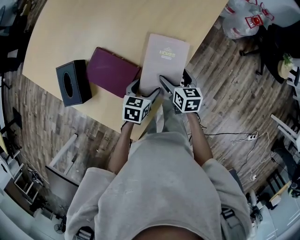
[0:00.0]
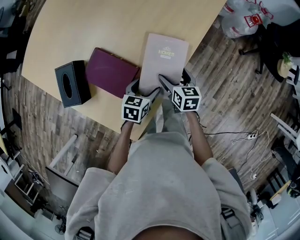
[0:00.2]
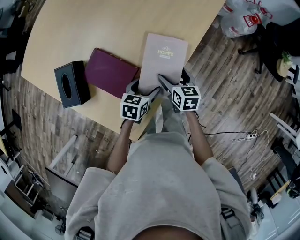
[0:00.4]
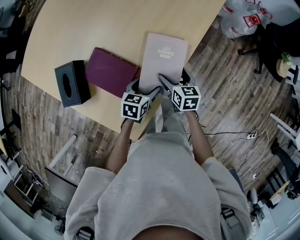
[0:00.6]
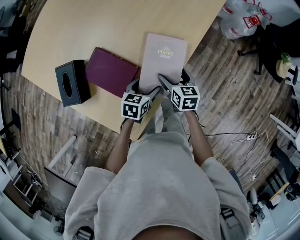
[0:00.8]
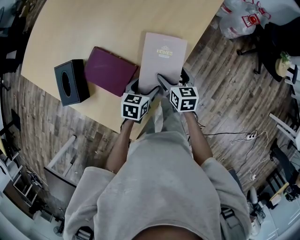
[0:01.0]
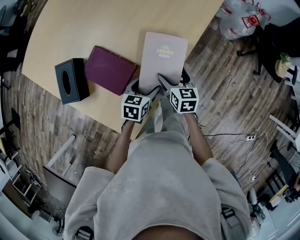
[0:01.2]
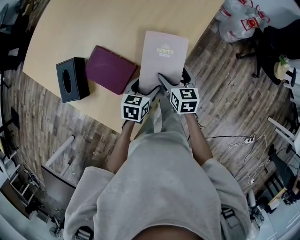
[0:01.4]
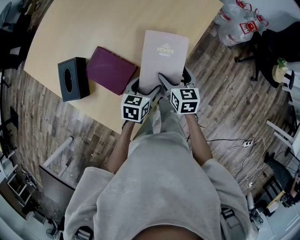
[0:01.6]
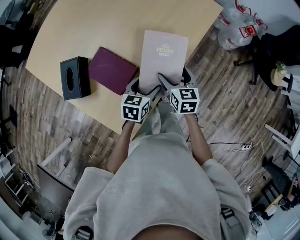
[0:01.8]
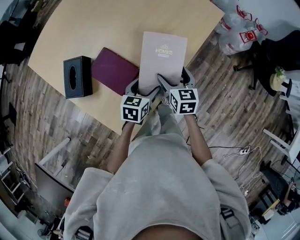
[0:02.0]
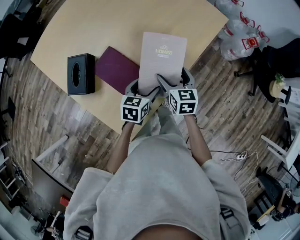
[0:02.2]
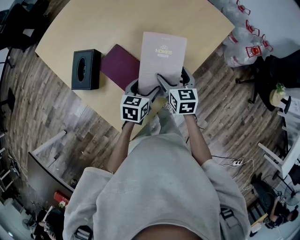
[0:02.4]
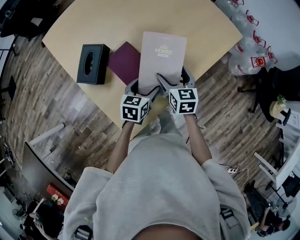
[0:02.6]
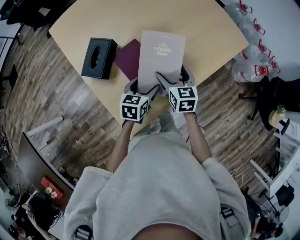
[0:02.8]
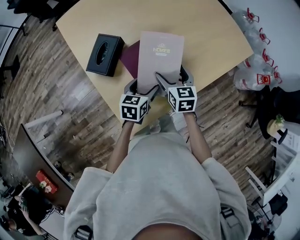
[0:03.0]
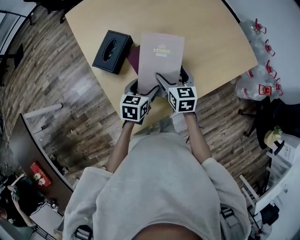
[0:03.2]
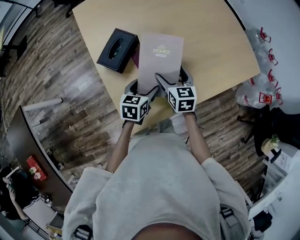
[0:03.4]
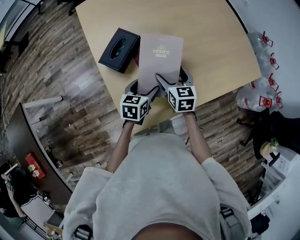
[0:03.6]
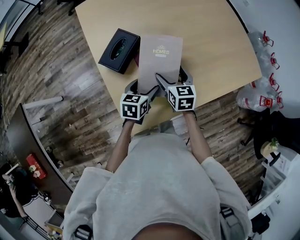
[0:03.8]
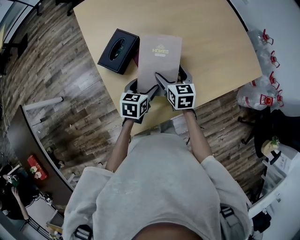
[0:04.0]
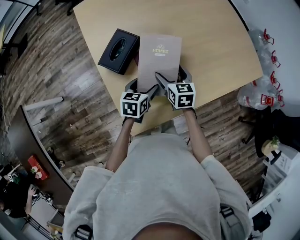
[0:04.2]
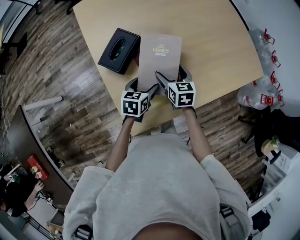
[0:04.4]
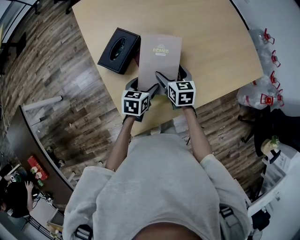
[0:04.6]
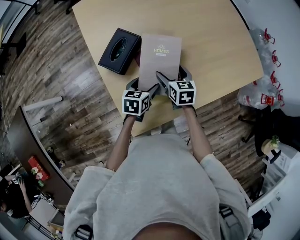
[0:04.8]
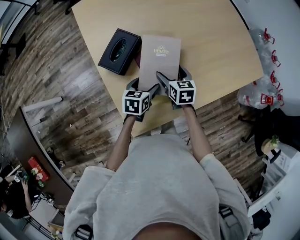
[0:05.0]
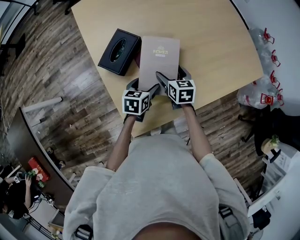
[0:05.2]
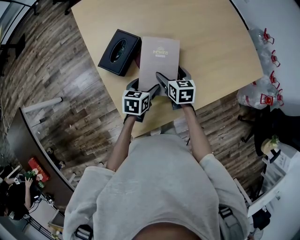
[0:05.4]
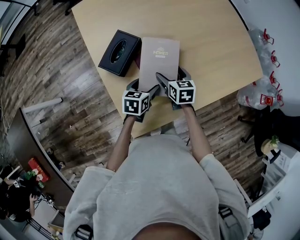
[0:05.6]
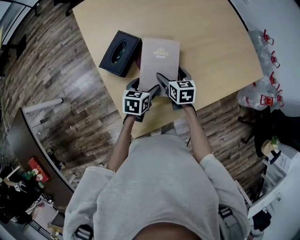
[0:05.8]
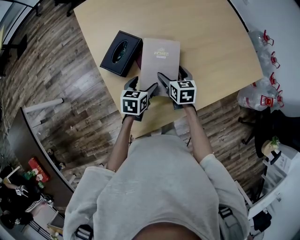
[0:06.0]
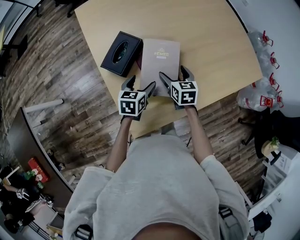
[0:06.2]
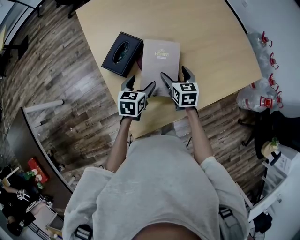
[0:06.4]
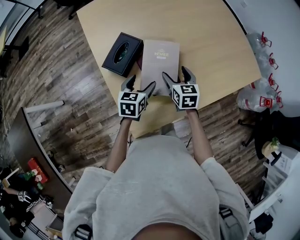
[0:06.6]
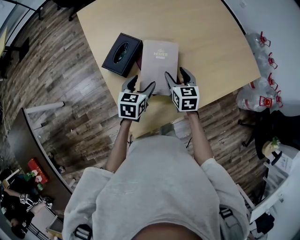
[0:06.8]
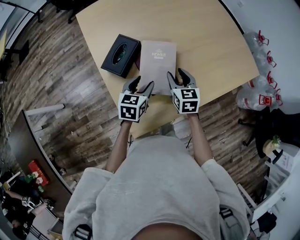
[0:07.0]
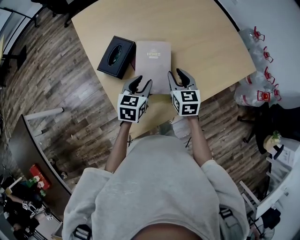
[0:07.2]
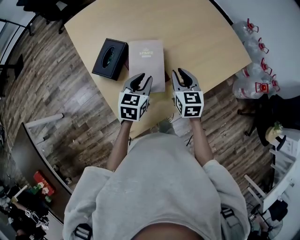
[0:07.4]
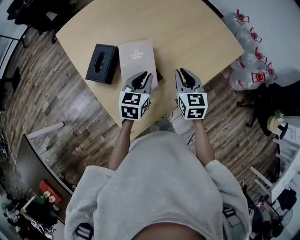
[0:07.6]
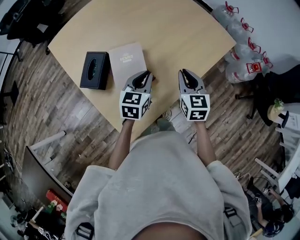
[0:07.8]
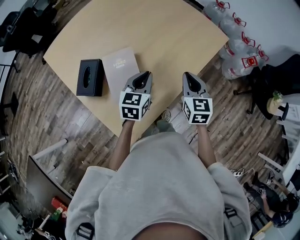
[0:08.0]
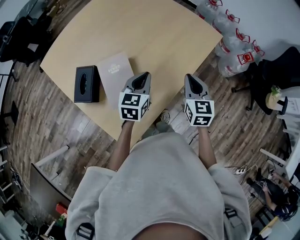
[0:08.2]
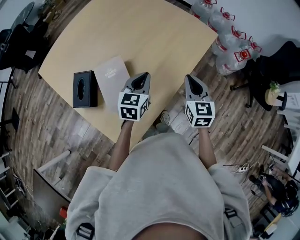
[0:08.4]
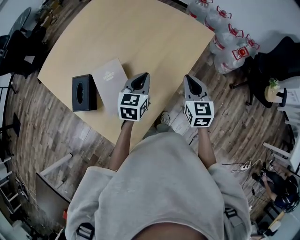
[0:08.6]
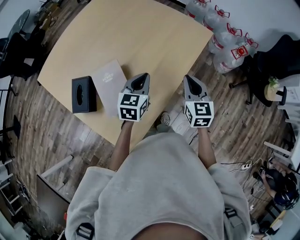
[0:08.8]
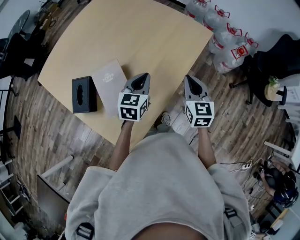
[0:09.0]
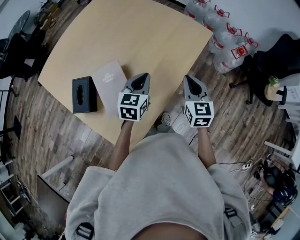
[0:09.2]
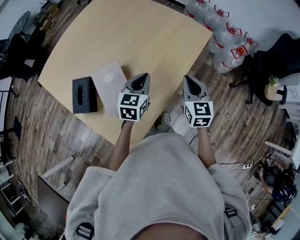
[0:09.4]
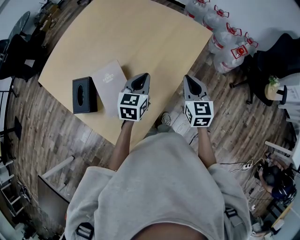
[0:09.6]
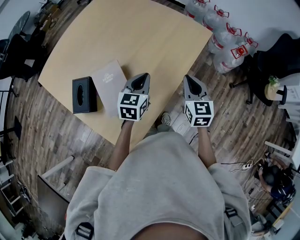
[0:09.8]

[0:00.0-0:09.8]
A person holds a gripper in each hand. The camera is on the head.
0:00.0 to 0:01.4: The grippers move only a little.
0:01.4 to 0:02.8: Both grippers move to the left and upward, roughly 15 cm. The right gripper turns by about 20 degrees; the left gripper turns by roughly 20 degrees.
0:02.8 to 0:04.2: The two grippers go about 10 cm to the left.
0:04.2 to 0:05.6: The grippers make only small movements.
0:05.6 to 0:07.0: The two grippers go roughly 10 cm upward. The right gripper closes.
0:07.0 to 0:08.4: The right gripper ends up approximately 25 cm from where it was, changes its angle by approximately 30 degrees, and closes its fingers. The left gripper moves some 20 cm, rotates some 30 degrees, and closes.
0:08.4 to 0:09.8: There are only small adjustments of the grippers.

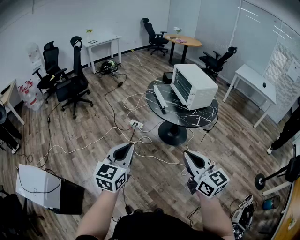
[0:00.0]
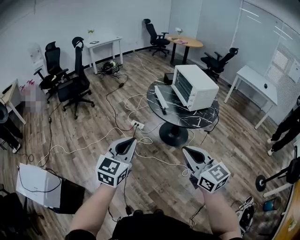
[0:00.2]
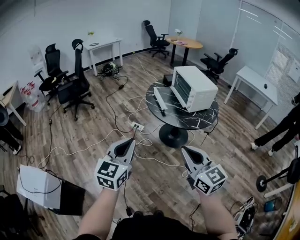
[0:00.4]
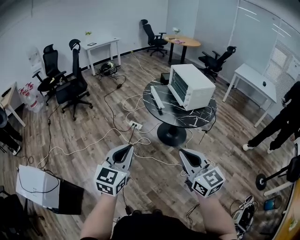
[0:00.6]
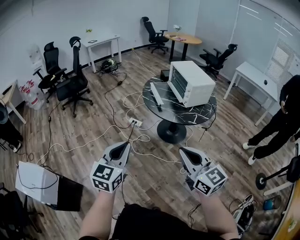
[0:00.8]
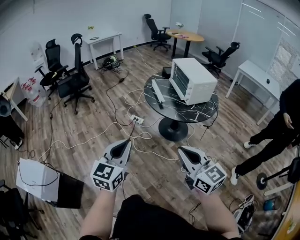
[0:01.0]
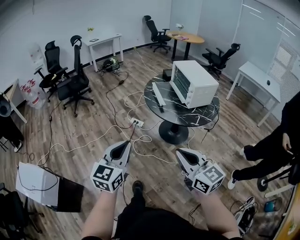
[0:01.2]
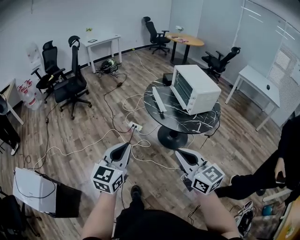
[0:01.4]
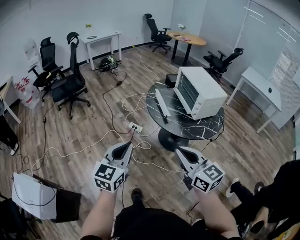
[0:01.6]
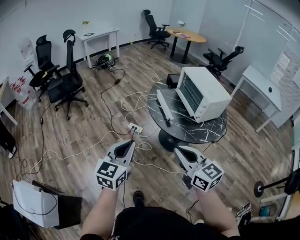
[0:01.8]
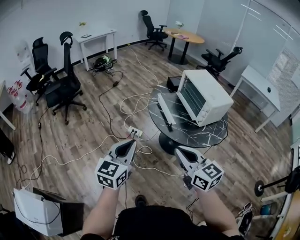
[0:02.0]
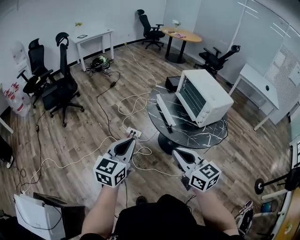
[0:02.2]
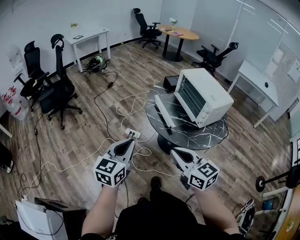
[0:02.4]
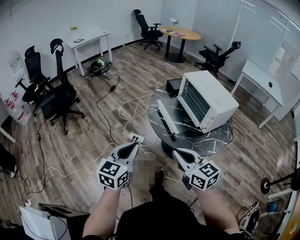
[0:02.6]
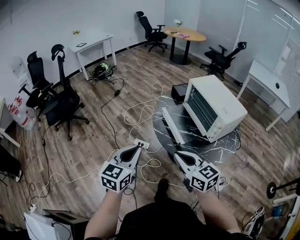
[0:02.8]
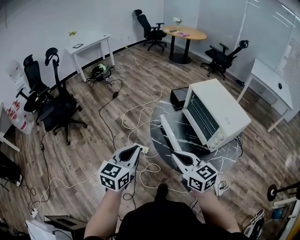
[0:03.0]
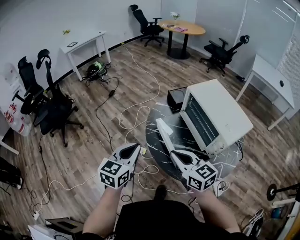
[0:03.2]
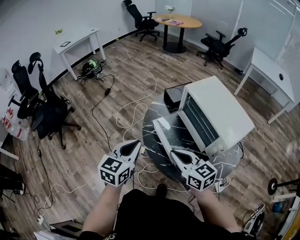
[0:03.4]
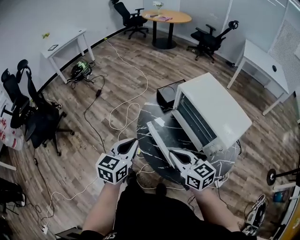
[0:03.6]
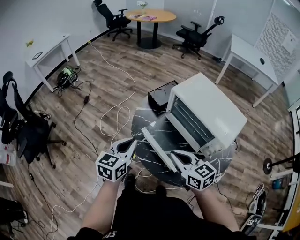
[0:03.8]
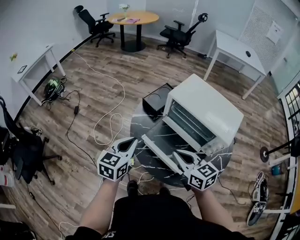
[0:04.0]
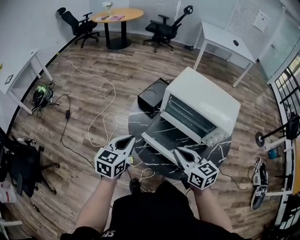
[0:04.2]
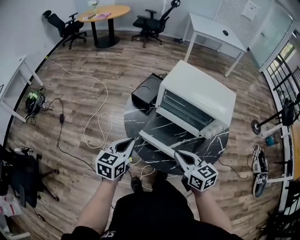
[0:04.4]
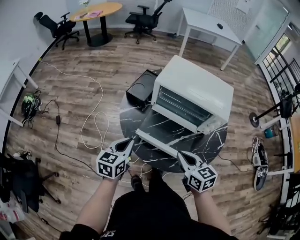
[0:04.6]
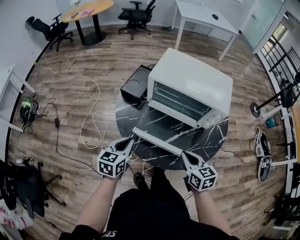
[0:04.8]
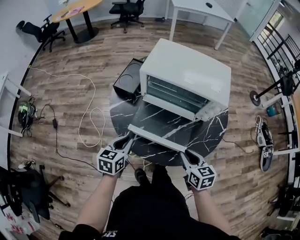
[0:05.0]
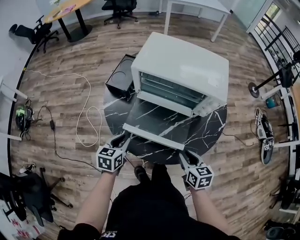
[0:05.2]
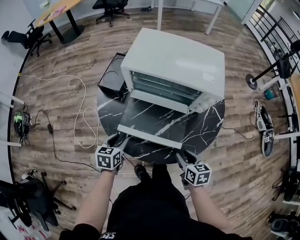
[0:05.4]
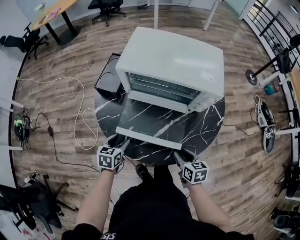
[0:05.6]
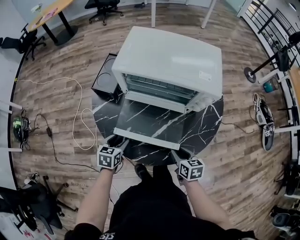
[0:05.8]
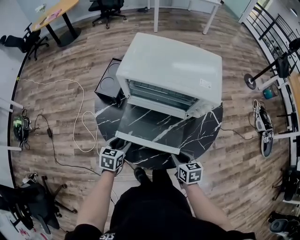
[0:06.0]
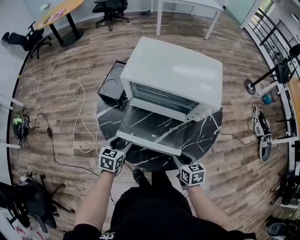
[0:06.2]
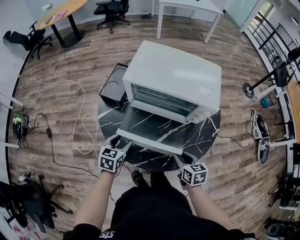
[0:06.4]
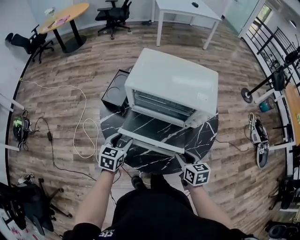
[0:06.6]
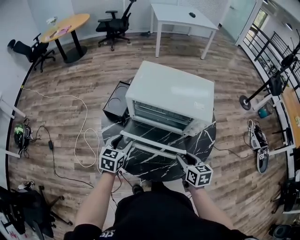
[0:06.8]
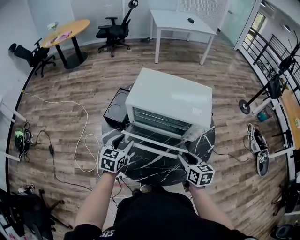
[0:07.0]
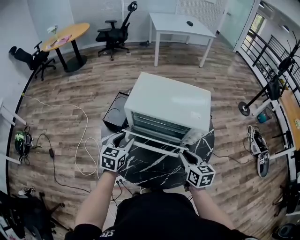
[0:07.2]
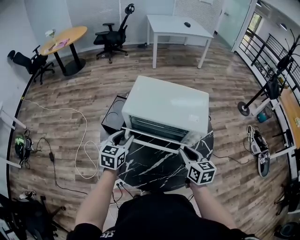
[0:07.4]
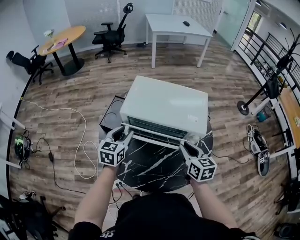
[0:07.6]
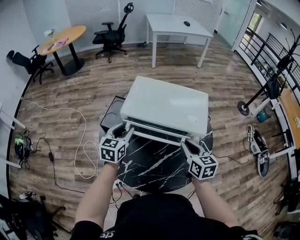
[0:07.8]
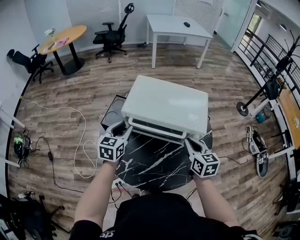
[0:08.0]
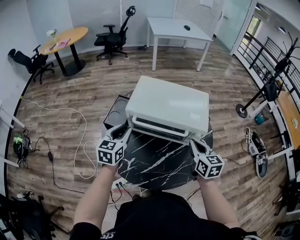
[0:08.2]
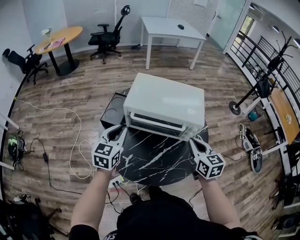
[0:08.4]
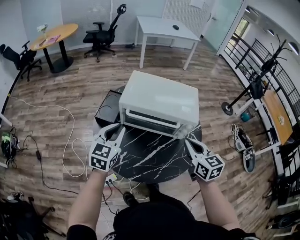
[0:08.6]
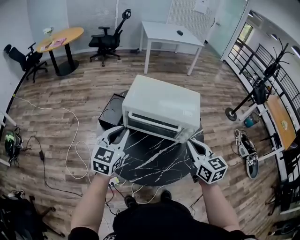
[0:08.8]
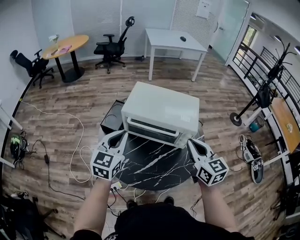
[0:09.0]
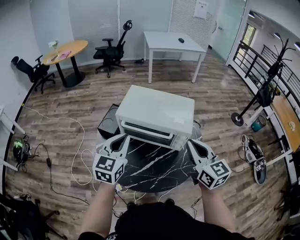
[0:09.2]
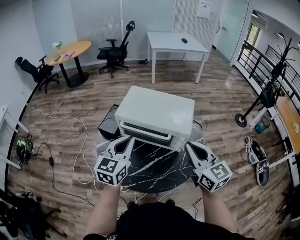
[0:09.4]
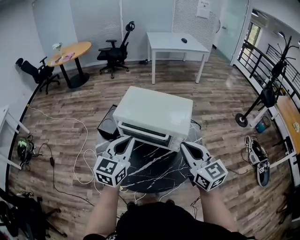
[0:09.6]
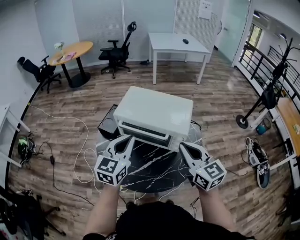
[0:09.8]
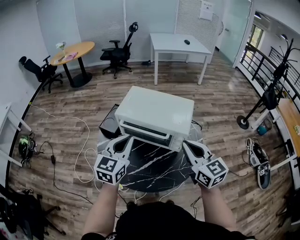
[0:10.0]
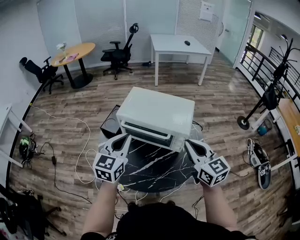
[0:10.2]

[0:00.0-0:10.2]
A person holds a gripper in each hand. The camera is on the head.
0:00.0 to 0:01.4: Both grippers move forward, approximately 10 cm.
0:01.4 to 0:03.0: The pair of grippers is taken forward, about 40 cm.
0:03.0 to 0:04.4: The right gripper shifts by approximately 20 cm, and swivels about 40 degrees. Meanwhile the left gripper moves about 30 cm, and swivels some 40 degrees.
0:04.4 to 0:05.8: The left gripper moves downward, approximately 20 cm, turns by some 30 degrees, and opens up. The right gripper travels downward and to the right by about 25 cm, changes its angle by approximately 40 degrees, and opens.
0:05.8 to 0:07.2: Both grippers move upward and forward, some 20 cm. The left gripper rotates about 20 degrees.
0:07.2 to 0:08.8: The grippers both shift upward by some 15 cm. The right gripper swivels roughly 20 degrees, and closes. The left gripper closes up.
0:08.8 to 0:10.2: The grippers both shift to the right and upward by approximately 10 cm.

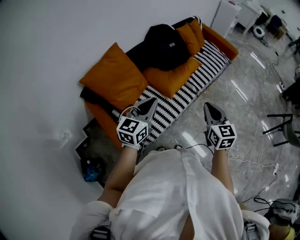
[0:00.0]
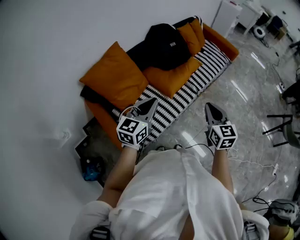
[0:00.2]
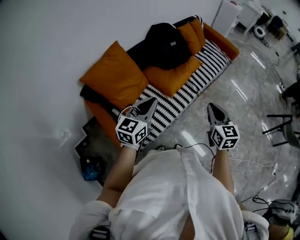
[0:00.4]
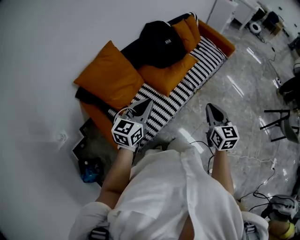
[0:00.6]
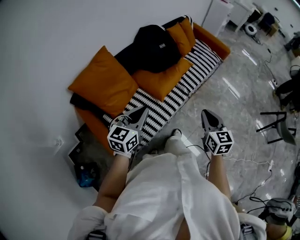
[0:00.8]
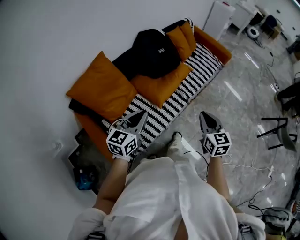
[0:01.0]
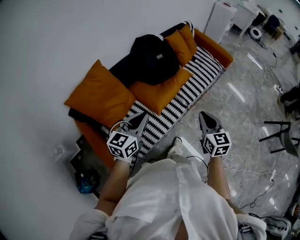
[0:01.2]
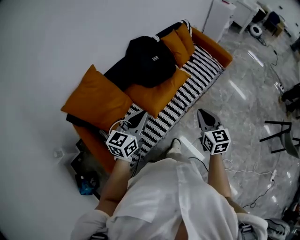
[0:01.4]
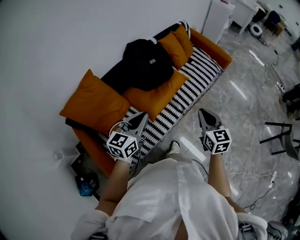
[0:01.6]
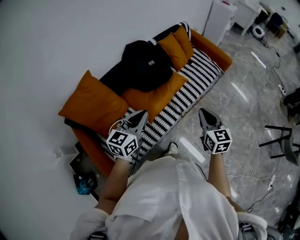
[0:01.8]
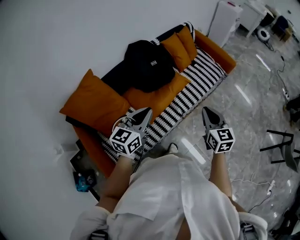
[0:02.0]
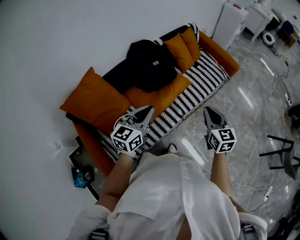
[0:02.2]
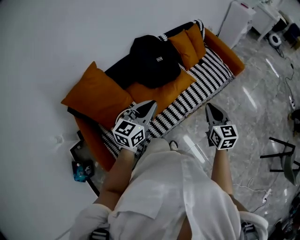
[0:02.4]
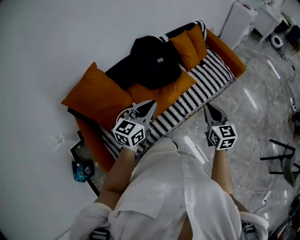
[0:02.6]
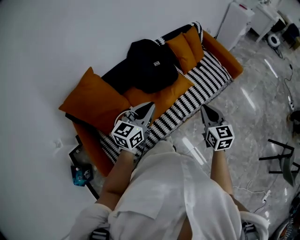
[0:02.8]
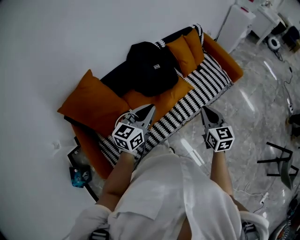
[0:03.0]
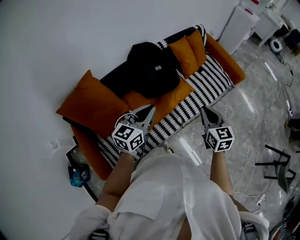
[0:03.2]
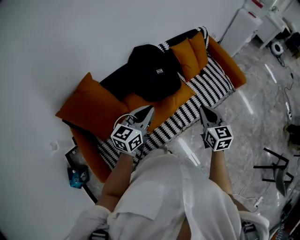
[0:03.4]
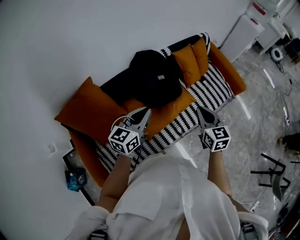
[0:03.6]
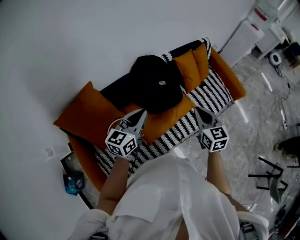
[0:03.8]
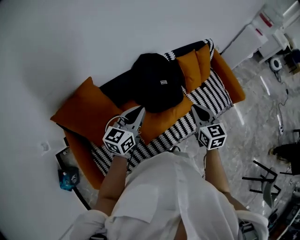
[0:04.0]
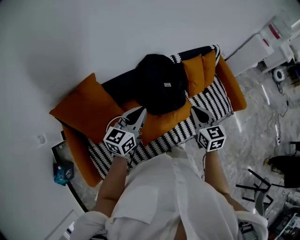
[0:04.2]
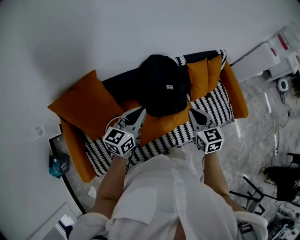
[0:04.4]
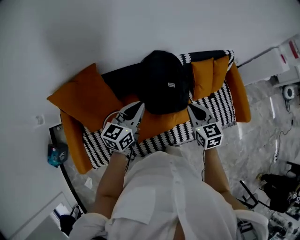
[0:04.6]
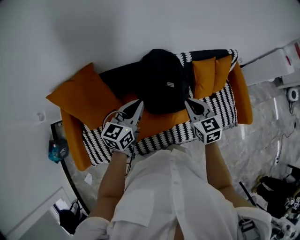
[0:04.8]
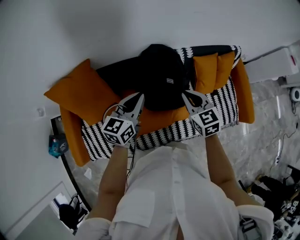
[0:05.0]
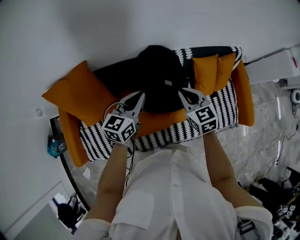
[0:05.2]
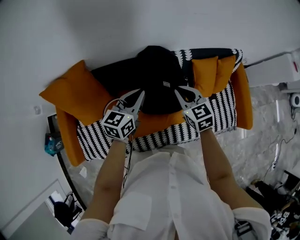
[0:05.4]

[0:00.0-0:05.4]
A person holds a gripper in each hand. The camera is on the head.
0:00.0 to 0:01.4: The two grippers go about 15 cm forward and to the right.
0:01.4 to 0:02.8: The two grippers go about 15 cm forward and to the right.
0:02.8 to 0:04.0: Both grippers move forward and to the left, roughly 20 cm.
0:04.0 to 0:05.4: The left gripper shifts approximately 15 cm forward, downward and to the right, and changes its angle by some 20 degrees, while the right gripper shifts about 20 cm forward and downward, and changes its angle by roughly 30 degrees.
